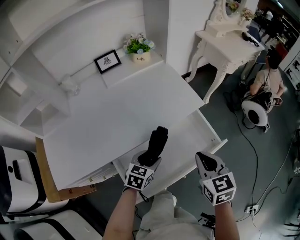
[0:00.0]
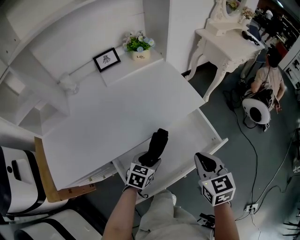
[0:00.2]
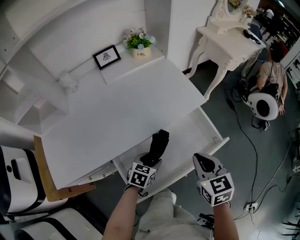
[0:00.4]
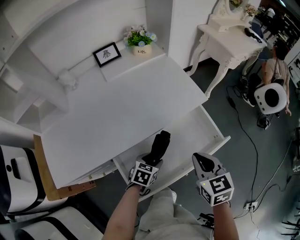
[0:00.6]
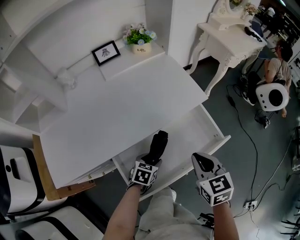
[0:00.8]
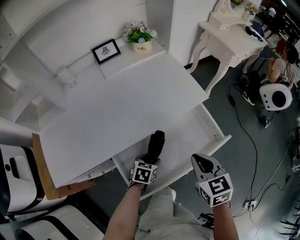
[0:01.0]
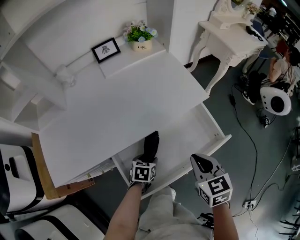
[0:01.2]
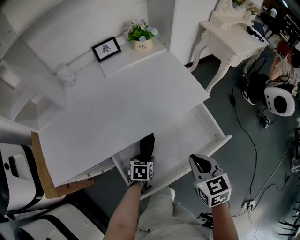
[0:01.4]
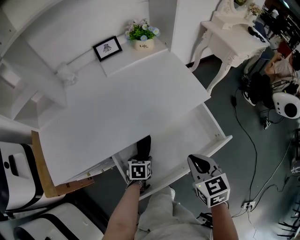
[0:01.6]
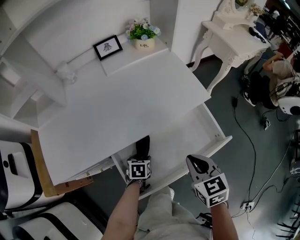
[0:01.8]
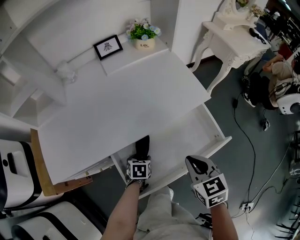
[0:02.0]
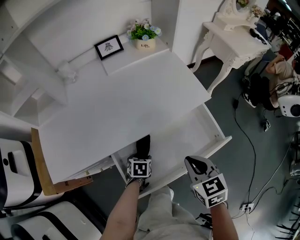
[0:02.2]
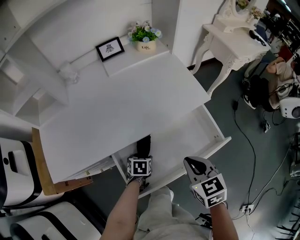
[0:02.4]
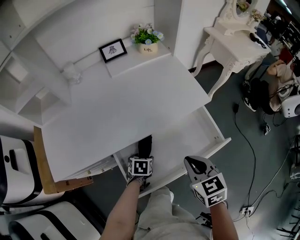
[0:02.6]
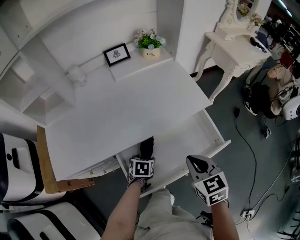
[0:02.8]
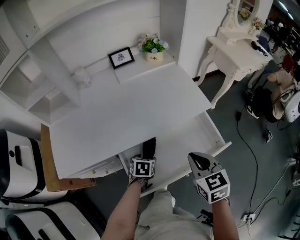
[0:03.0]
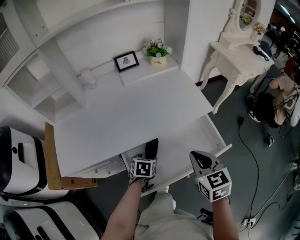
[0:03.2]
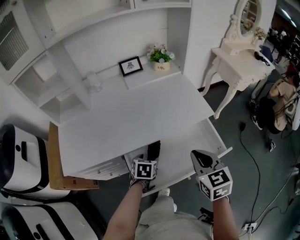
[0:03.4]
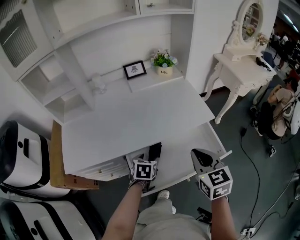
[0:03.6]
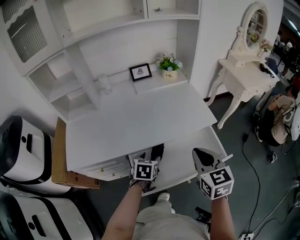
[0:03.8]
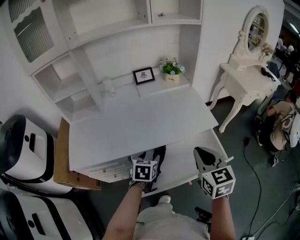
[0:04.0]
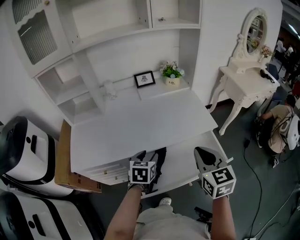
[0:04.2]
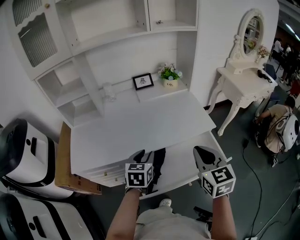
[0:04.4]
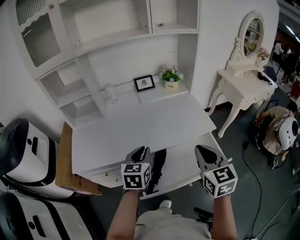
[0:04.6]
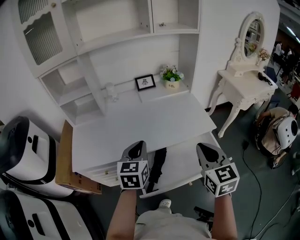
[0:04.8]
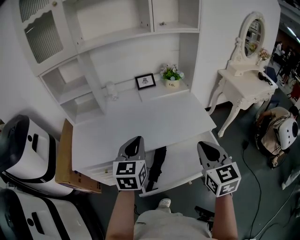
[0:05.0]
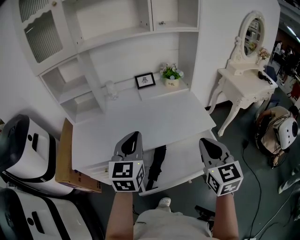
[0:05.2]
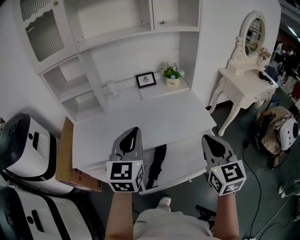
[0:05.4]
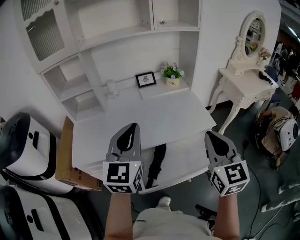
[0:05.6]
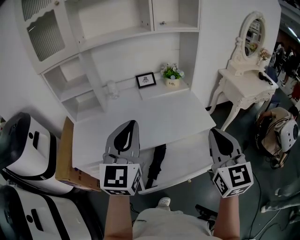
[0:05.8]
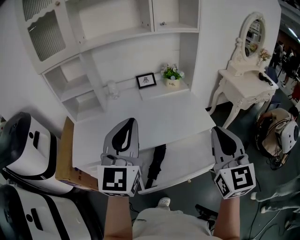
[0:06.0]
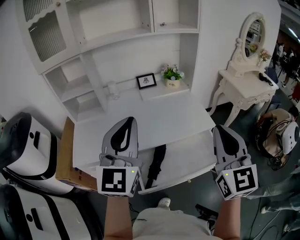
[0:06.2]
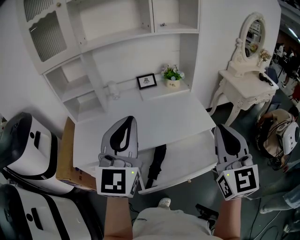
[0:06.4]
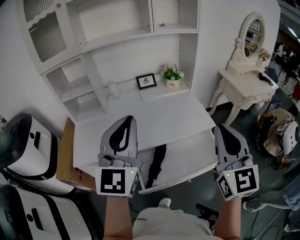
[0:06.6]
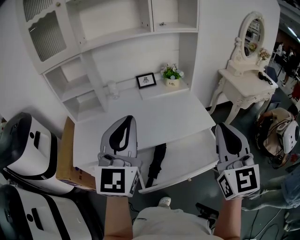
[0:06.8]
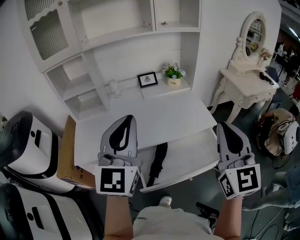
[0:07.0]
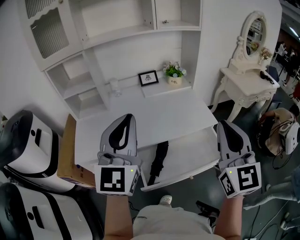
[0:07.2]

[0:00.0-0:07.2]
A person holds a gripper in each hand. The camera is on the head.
0.0 to 1.4 s: The right gripper moves approximately 5 cm, while the left gripper travels downward by approximately 10 cm, and rotates some 30 degrees.
1.4 to 2.8 s: There are only small adjustments of the grippers.
2.8 to 4.4 s: The left gripper is displaced upward by roughly 25 cm, tips its fingers upward by approximately 30 degrees, and closes up, while the right gripper shifts about 10 cm upward.
4.4 to 5.8 s: The right gripper moves upward, some 10 cm. Meanwhile the left gripper shifts roughly 25 cm upward, tilts its fingers approximately 40 degrees upward, and closes.
5.8 to 7.2 s: The right gripper moves some 5 cm.

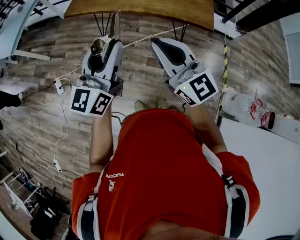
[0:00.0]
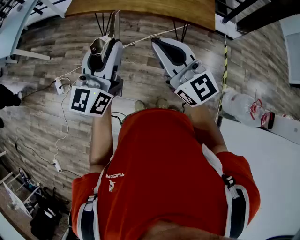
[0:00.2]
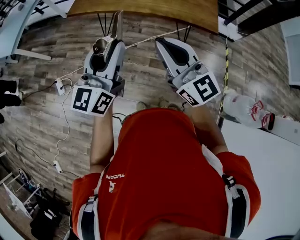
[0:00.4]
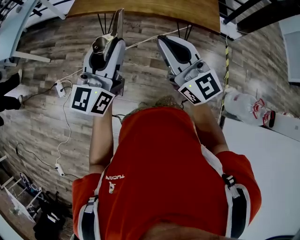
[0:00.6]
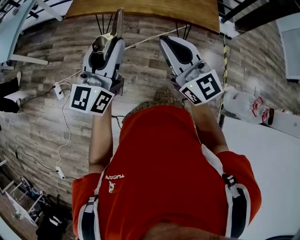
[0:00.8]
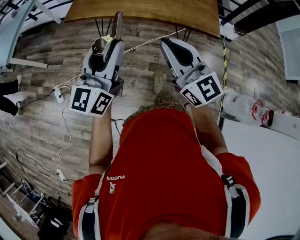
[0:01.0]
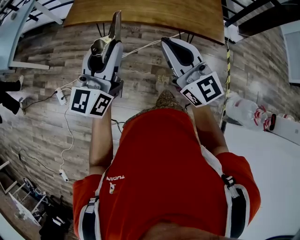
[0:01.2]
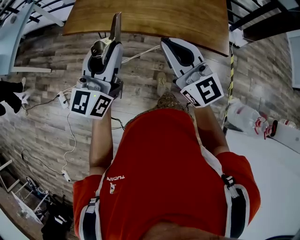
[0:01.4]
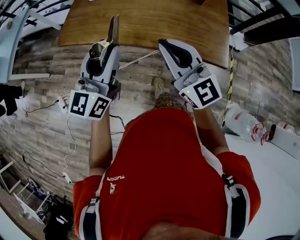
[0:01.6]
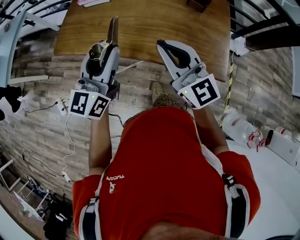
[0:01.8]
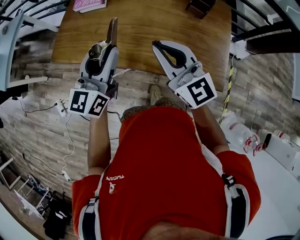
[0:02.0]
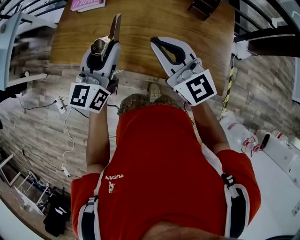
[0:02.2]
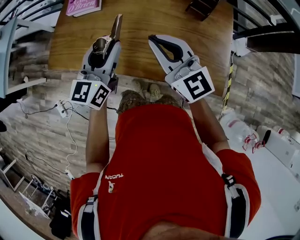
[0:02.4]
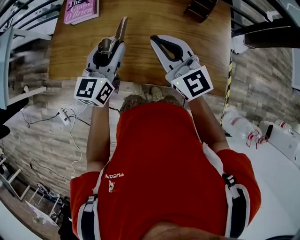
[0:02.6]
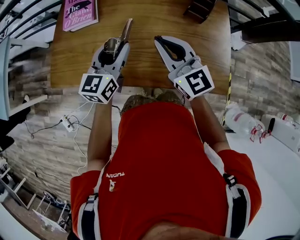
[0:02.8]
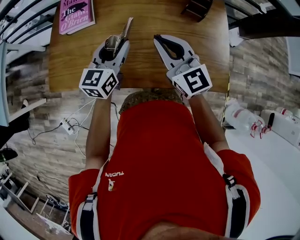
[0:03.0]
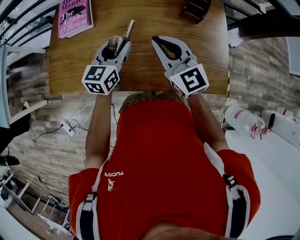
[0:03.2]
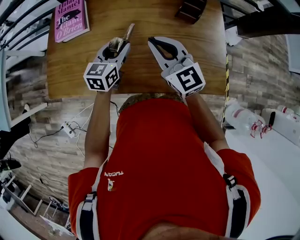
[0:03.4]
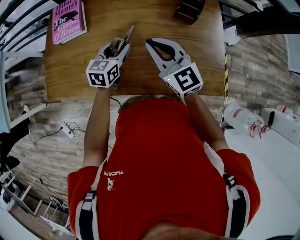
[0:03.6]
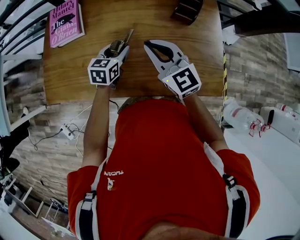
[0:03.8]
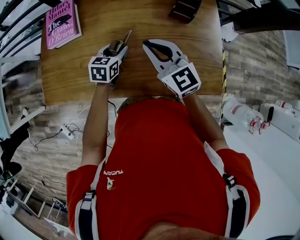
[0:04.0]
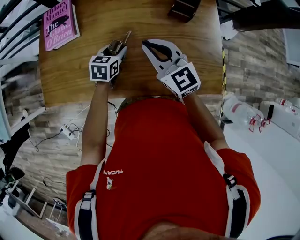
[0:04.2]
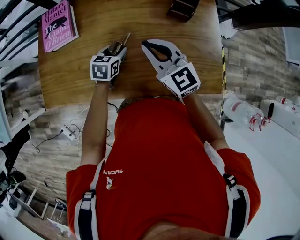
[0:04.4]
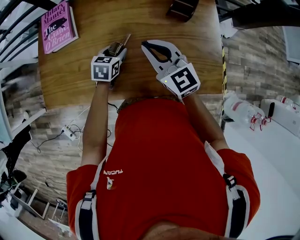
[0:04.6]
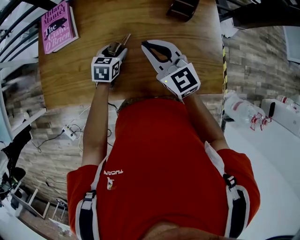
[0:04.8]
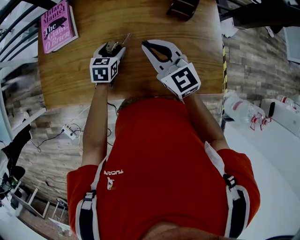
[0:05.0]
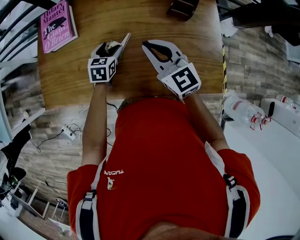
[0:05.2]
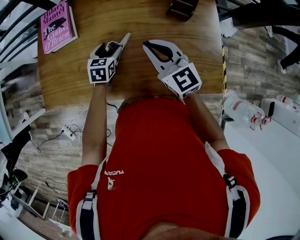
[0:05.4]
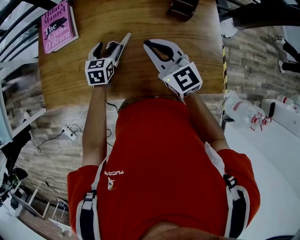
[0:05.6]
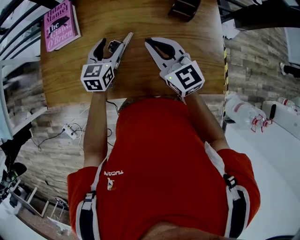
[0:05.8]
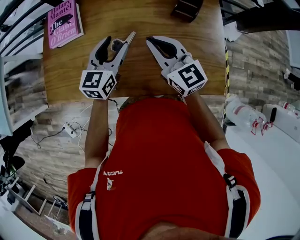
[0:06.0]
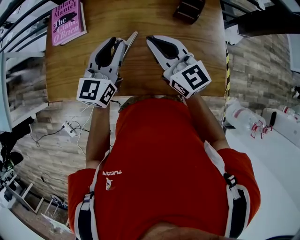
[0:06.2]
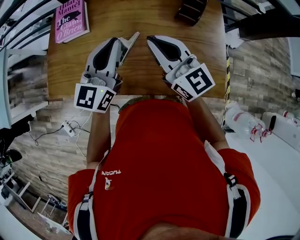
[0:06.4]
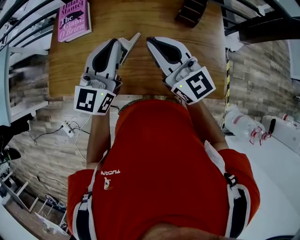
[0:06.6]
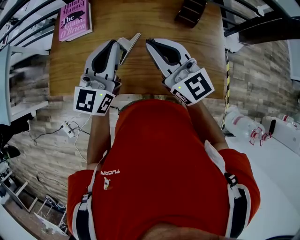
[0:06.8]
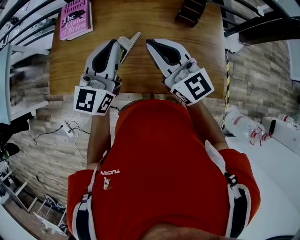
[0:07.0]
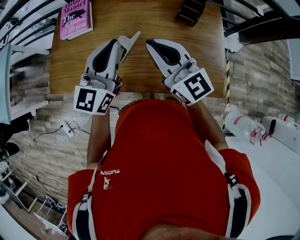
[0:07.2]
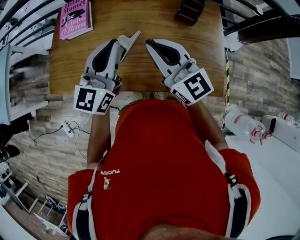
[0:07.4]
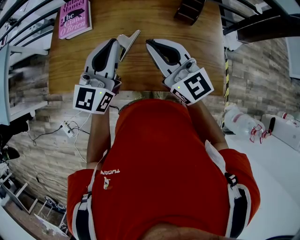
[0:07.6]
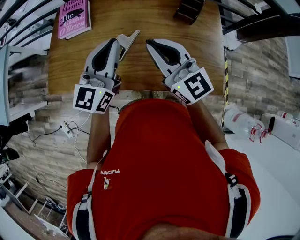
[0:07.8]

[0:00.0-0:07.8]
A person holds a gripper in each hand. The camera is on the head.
0.0 to 1.6 s: The grippers both shift forward by about 25 cm.
1.6 to 3.2 s: The right gripper is displaced forward by roughly 25 cm, while the left gripper is displaced forward and downward by some 35 cm, and swivels about 30 degrees.
3.2 to 4.6 s: The right gripper ends up approximately 5 cm from where it was, while the left gripper is displaced downward by roughly 15 cm, and rotates approximately 30 degrees.
4.6 to 6.2 s: The left gripper heads upward, covering about 20 cm, points its fingers about 40 degrees further upward, and opens and closes again.
6.2 to 7.8 s: The right gripper moves backward, about 5 cm. The left gripper shifts about 10 cm upward and backward.

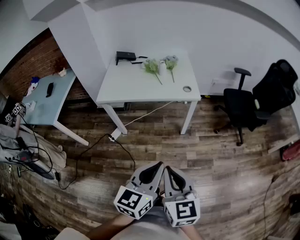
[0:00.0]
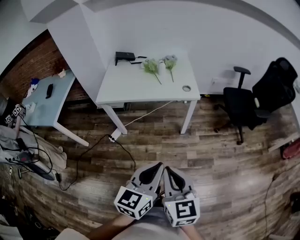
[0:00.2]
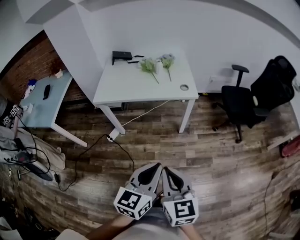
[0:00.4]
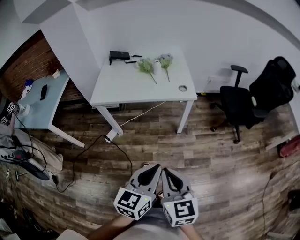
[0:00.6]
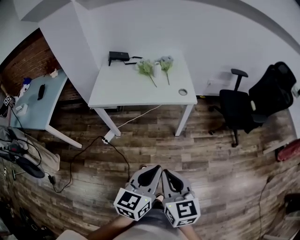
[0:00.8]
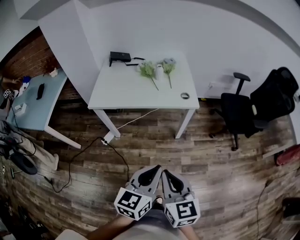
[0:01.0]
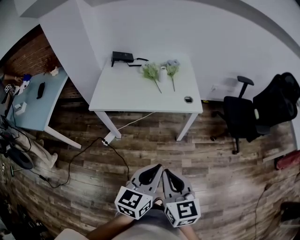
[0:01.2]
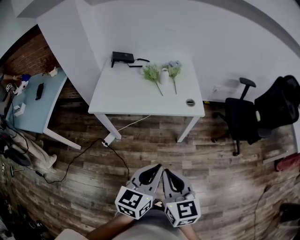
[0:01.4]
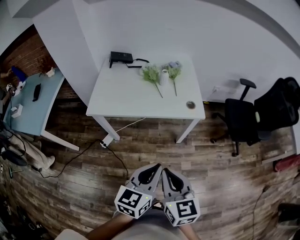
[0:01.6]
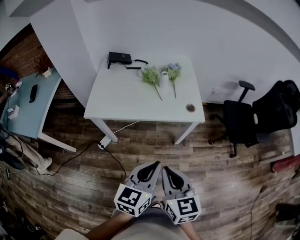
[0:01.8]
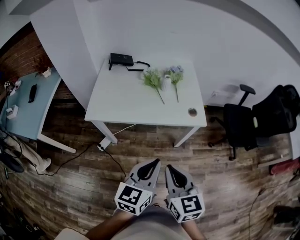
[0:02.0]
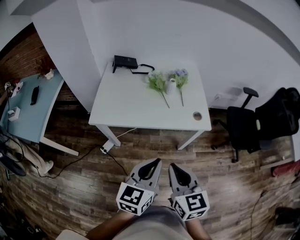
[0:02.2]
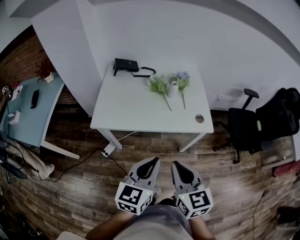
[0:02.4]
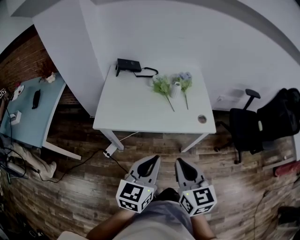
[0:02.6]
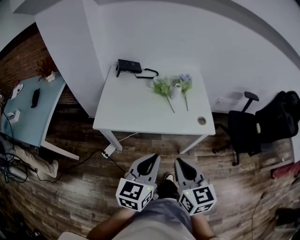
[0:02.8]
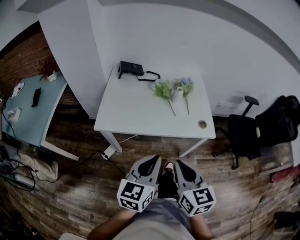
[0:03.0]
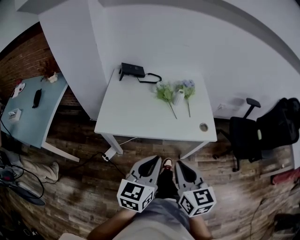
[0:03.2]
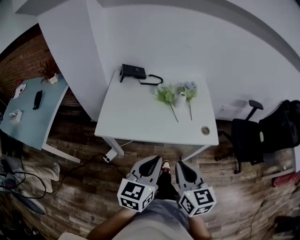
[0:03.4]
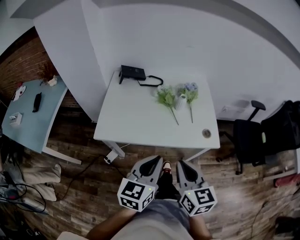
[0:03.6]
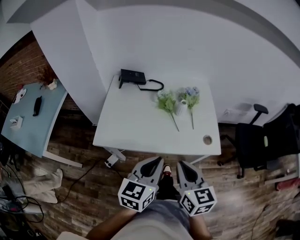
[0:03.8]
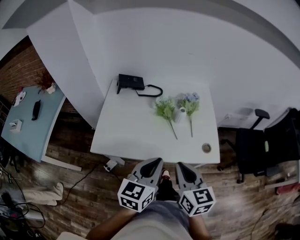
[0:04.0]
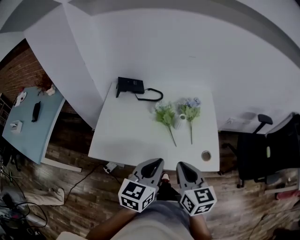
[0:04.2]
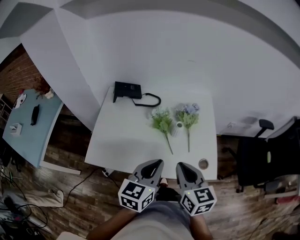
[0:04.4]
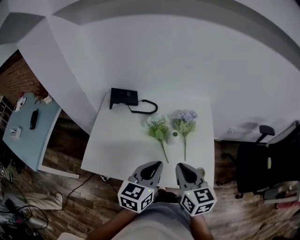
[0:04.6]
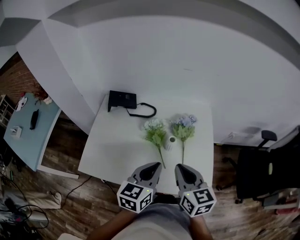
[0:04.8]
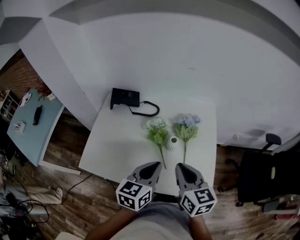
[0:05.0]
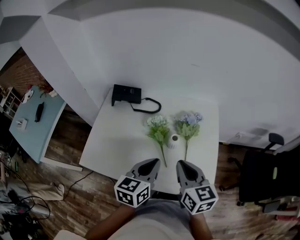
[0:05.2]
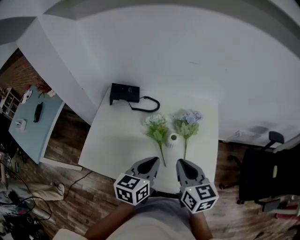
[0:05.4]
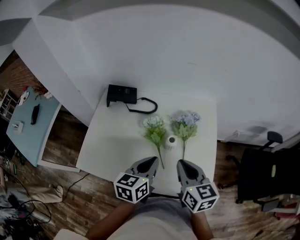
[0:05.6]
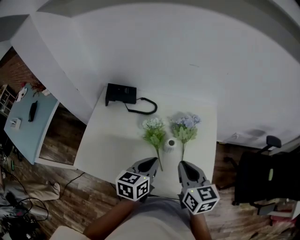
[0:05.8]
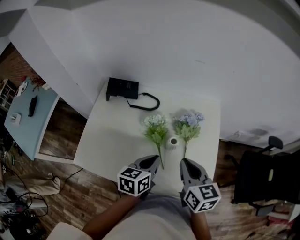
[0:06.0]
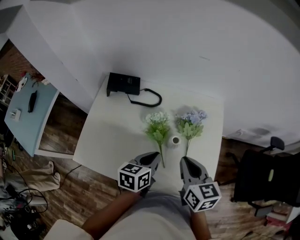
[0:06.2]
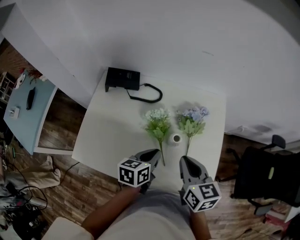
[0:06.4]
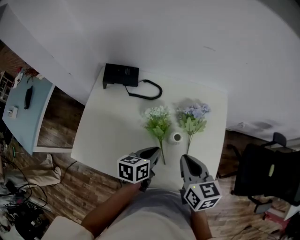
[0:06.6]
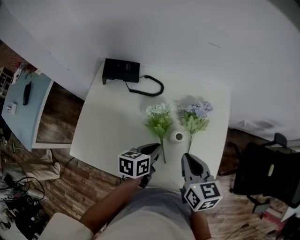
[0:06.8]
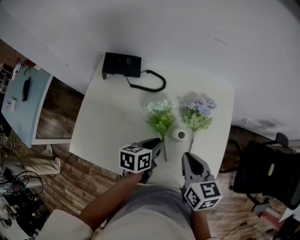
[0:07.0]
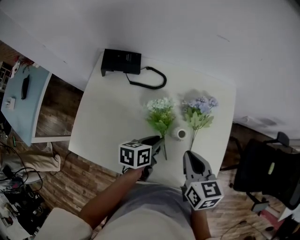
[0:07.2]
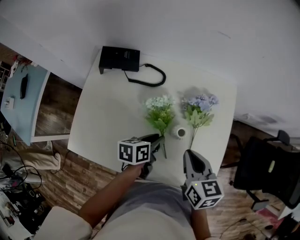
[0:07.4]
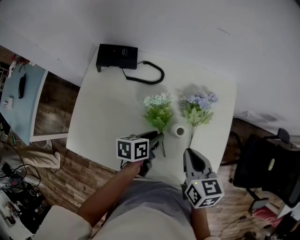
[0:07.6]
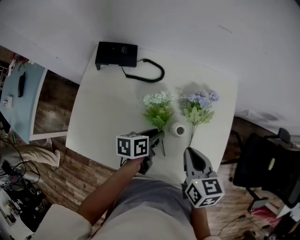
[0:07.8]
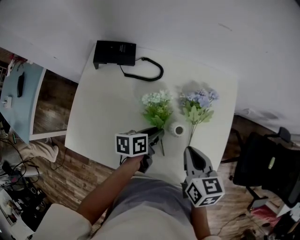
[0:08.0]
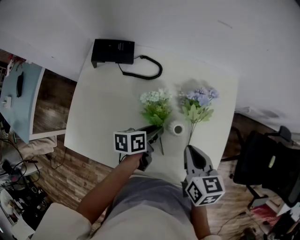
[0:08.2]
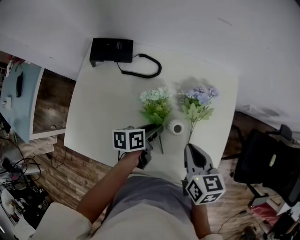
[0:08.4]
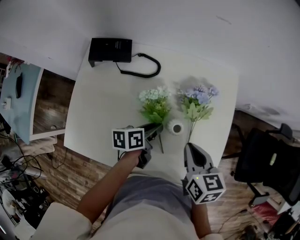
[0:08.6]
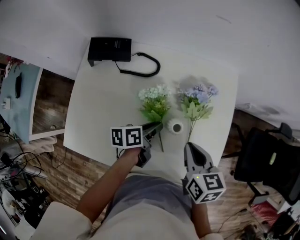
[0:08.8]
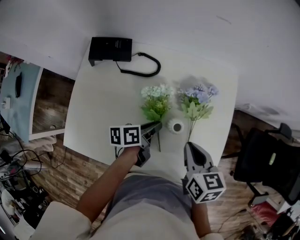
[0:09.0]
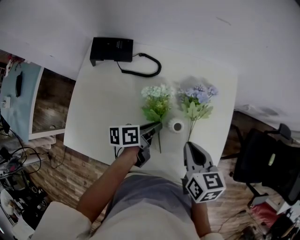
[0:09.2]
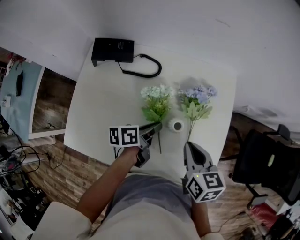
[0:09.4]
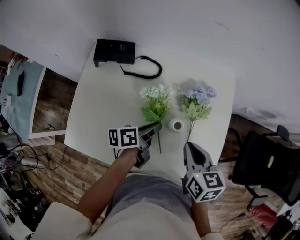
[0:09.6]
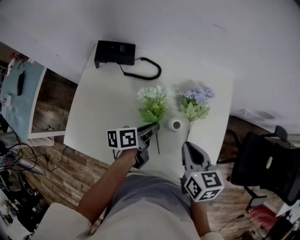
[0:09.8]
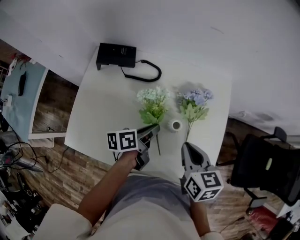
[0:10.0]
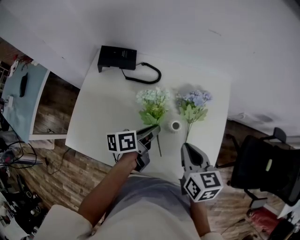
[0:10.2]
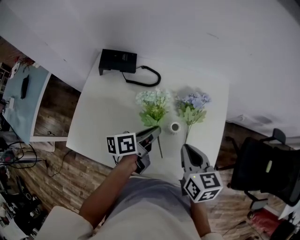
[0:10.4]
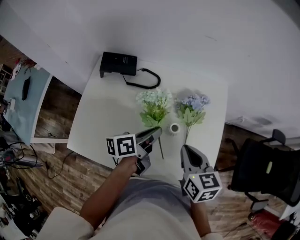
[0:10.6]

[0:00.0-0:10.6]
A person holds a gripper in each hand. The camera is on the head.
0.0 to 1.6 s: The two grippers go some 15 cm forward.
1.6 to 3.0 s: The grippers both shift forward and to the left by about 15 cm.
3.0 to 4.6 s: Both grippers move forward, some 30 cm.
4.6 to 6.0 s: The left gripper heads downward and forward, covering approximately 15 cm, and swivels approximately 20 degrees, while the right gripper moves forward, about 10 cm.
6.0 to 7.6 s: The left gripper goes about 10 cm downward, rotates roughly 30 degrees, and opens its fingers; the right gripper goes some 5 cm downward.
7.6 to 9.0 s: The grippers stay close to where they were, moving slightly.
9.0 to 10.6 s: The left gripper moves upward, about 10 cm.
